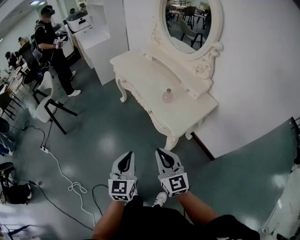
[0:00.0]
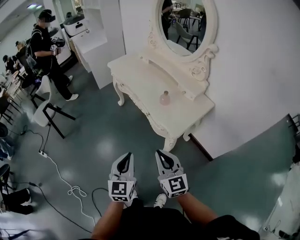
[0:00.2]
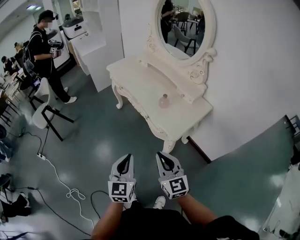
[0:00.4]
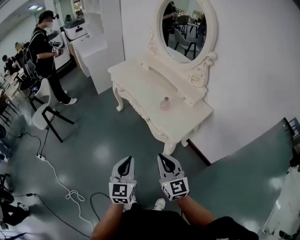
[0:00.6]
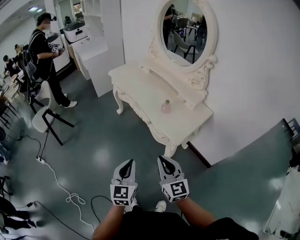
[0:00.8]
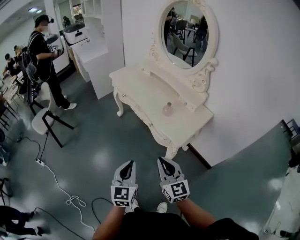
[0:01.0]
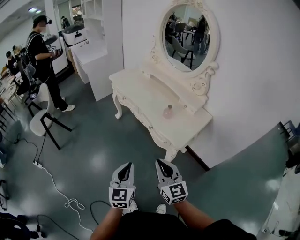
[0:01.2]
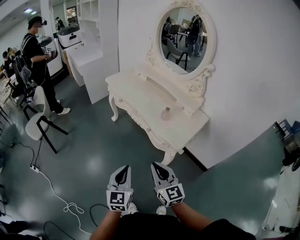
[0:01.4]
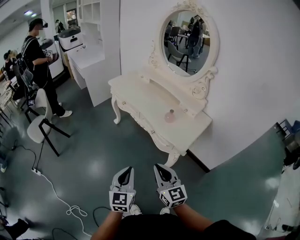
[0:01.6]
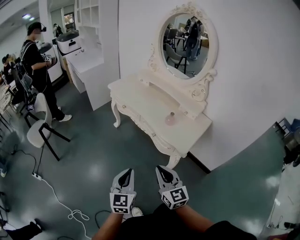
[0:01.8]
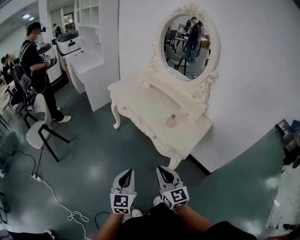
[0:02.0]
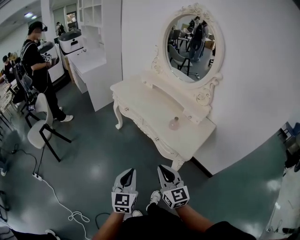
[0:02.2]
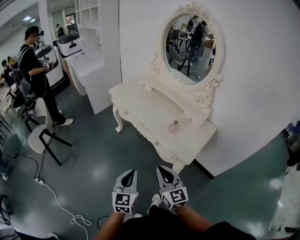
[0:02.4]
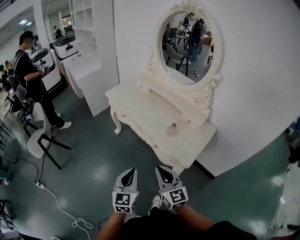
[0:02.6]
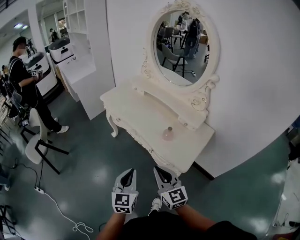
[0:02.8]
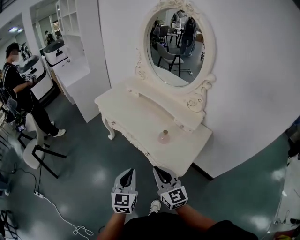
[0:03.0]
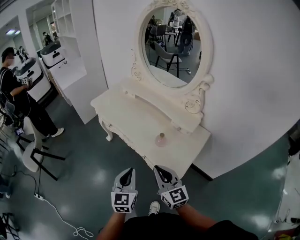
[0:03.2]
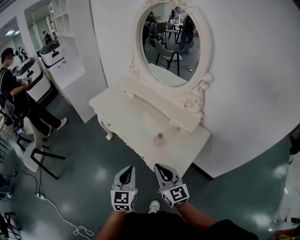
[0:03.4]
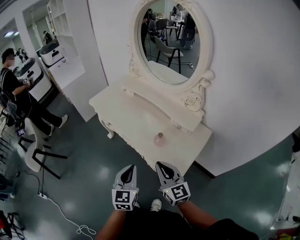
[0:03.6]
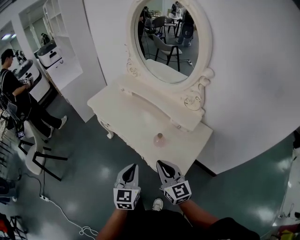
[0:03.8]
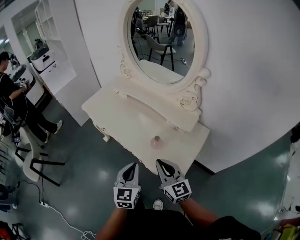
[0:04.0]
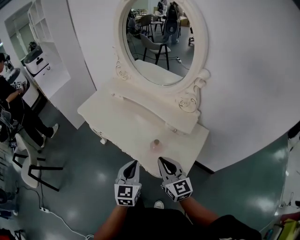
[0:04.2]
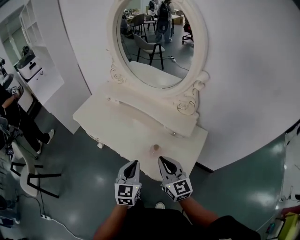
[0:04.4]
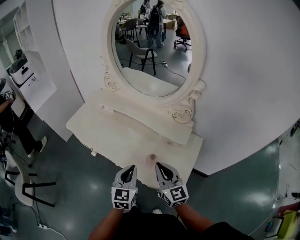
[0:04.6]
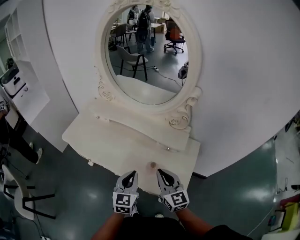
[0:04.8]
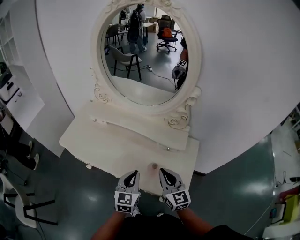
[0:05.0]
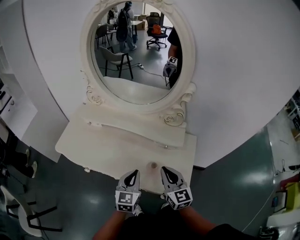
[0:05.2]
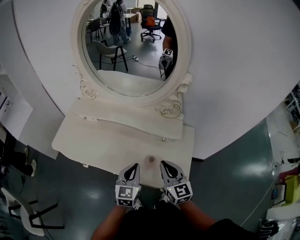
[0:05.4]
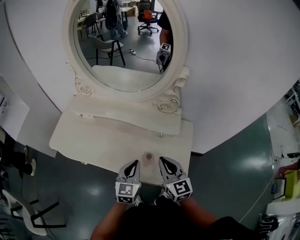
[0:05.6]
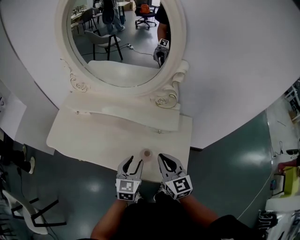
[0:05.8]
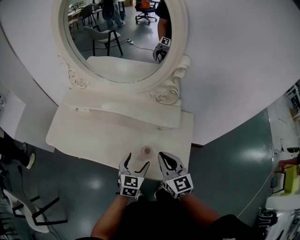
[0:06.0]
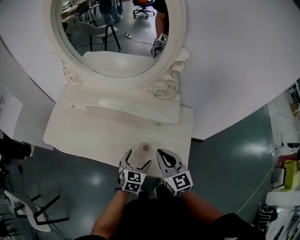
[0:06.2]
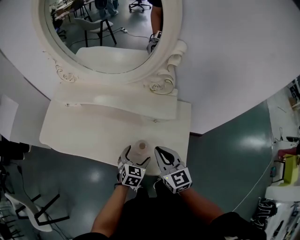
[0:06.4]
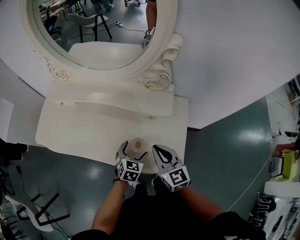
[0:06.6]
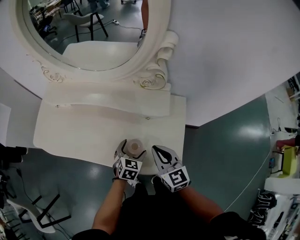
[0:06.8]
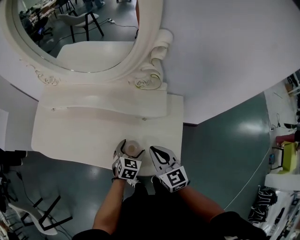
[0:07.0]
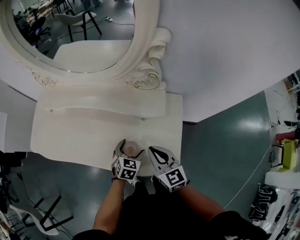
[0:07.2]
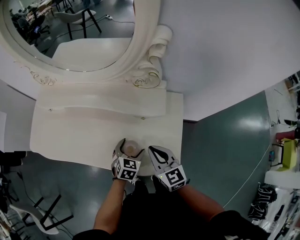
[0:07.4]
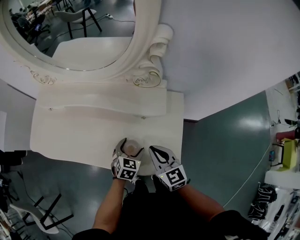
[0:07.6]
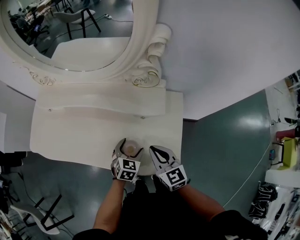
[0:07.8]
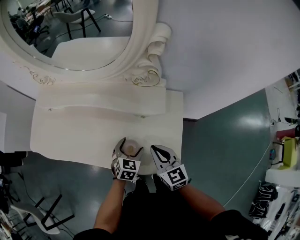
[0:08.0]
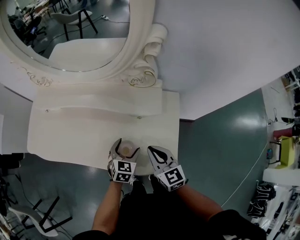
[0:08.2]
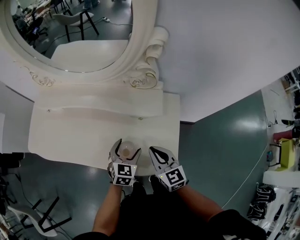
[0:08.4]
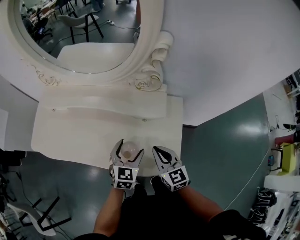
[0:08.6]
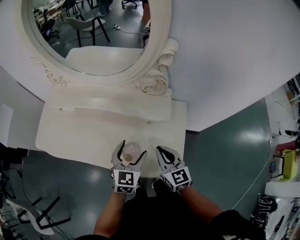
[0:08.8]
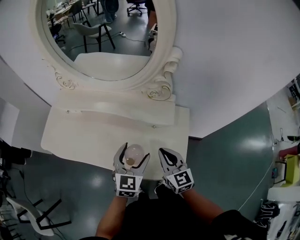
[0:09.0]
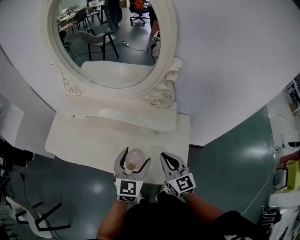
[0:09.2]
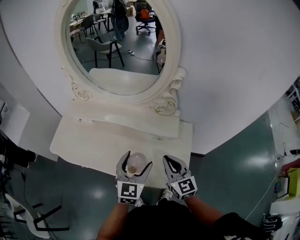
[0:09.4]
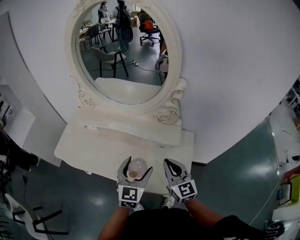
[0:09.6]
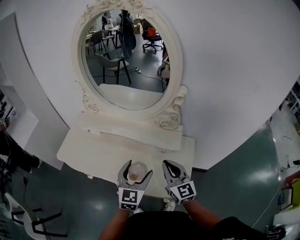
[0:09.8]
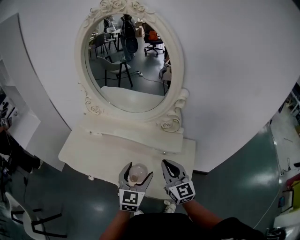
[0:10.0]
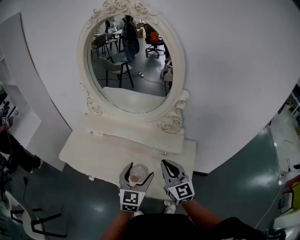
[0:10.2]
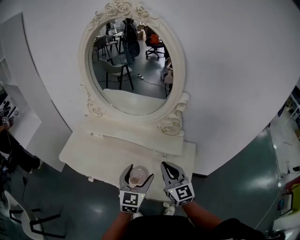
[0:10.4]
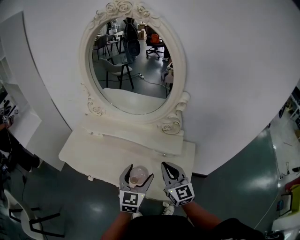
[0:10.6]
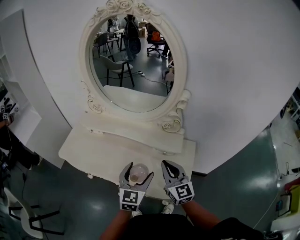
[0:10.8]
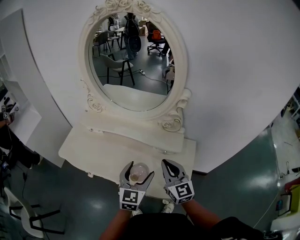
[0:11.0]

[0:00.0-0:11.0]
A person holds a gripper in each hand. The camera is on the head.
0:00.0 to 0:01.6: The two grippers go about 10 cm to the left.
0:01.6 to 0:03.2: The two grippers go roughly 20 cm forward and to the right.
0:03.2 to 0:04.8: Both grippers move forward, approximately 20 cm. The left gripper swivels approximately 20 degrees; the right gripper swivels roughly 20 degrees.
0:04.8 to 0:06.2: The left gripper heads downward and to the right, covering about 15 cm, changes its angle by some 30 degrees, and opens its fingers; the right gripper moves approximately 5 cm.
0:06.2 to 0:07.8: The right gripper moves downward, some 5 cm, while the left gripper moves downward and forward, some 10 cm.
0:07.8 to 0:09.4: The left gripper is displaced upward by some 20 cm, and changes its angle by roughly 30 degrees. The right gripper shifts approximately 10 cm upward.
0:09.4 to 0:11.0: The right gripper goes approximately 5 cm upward.

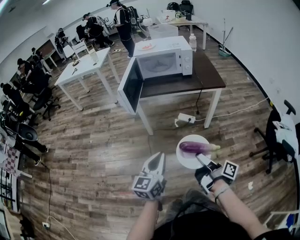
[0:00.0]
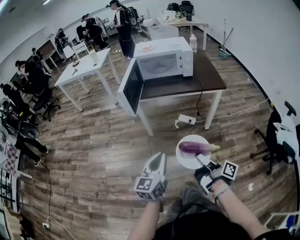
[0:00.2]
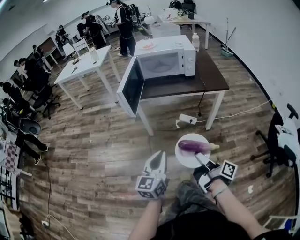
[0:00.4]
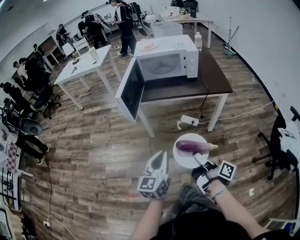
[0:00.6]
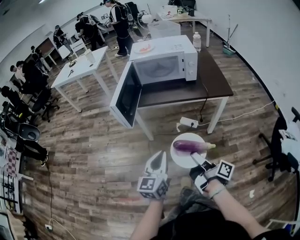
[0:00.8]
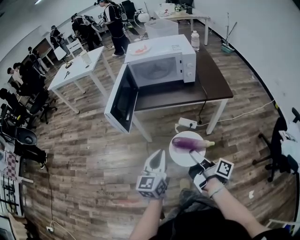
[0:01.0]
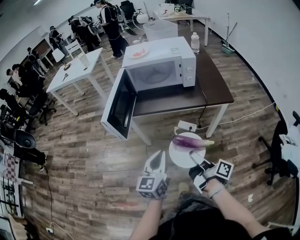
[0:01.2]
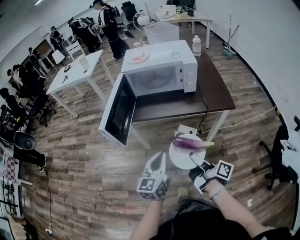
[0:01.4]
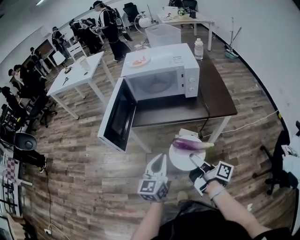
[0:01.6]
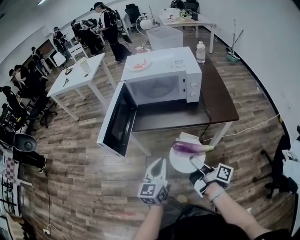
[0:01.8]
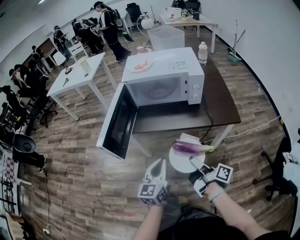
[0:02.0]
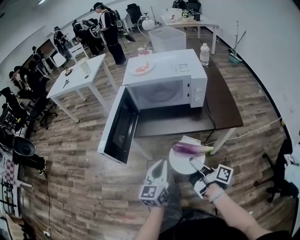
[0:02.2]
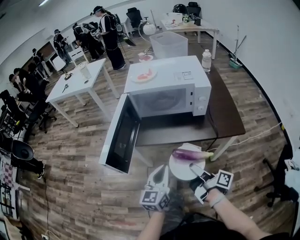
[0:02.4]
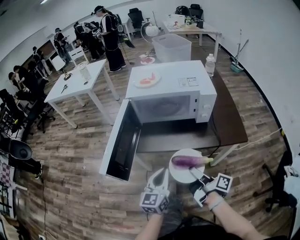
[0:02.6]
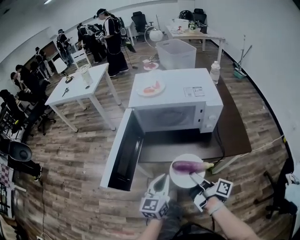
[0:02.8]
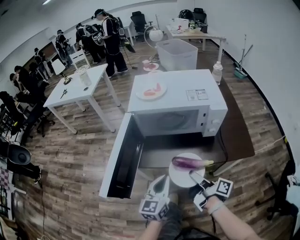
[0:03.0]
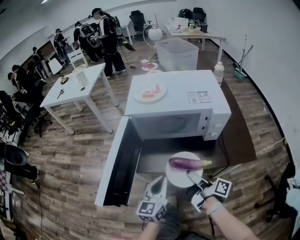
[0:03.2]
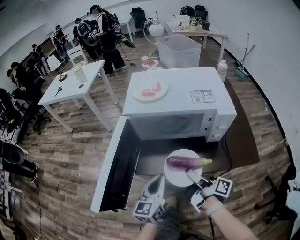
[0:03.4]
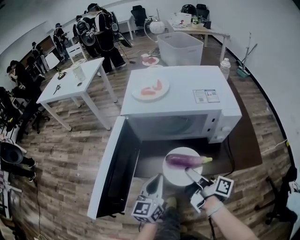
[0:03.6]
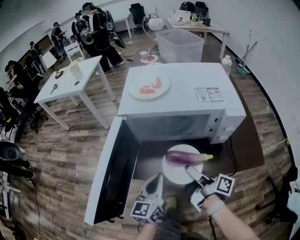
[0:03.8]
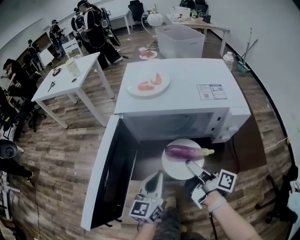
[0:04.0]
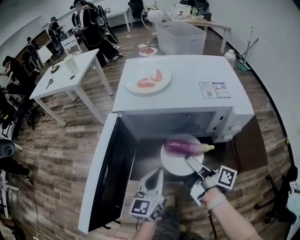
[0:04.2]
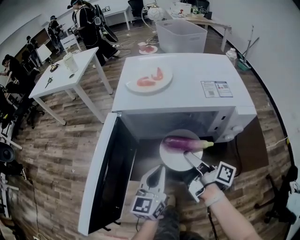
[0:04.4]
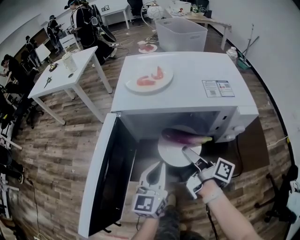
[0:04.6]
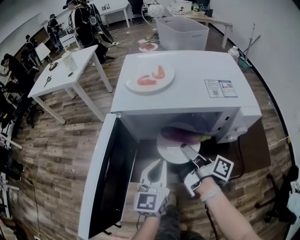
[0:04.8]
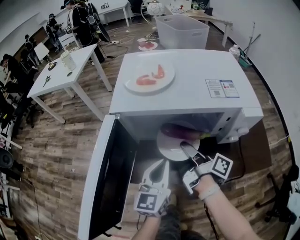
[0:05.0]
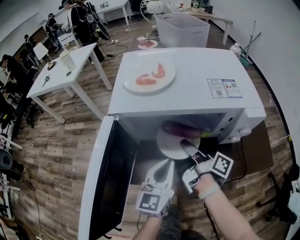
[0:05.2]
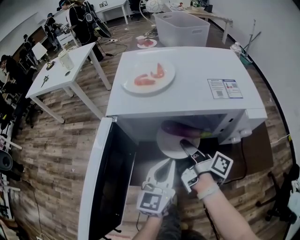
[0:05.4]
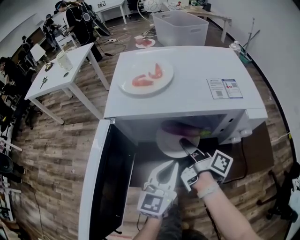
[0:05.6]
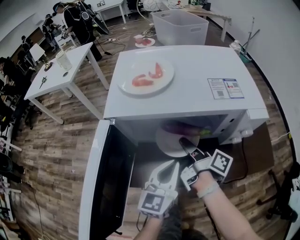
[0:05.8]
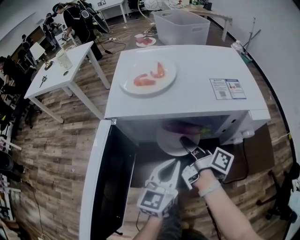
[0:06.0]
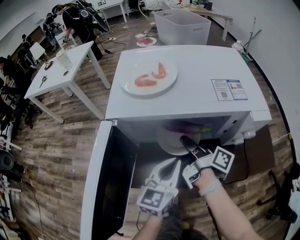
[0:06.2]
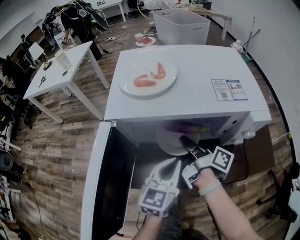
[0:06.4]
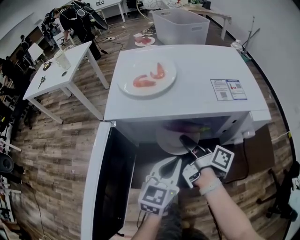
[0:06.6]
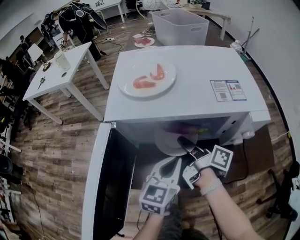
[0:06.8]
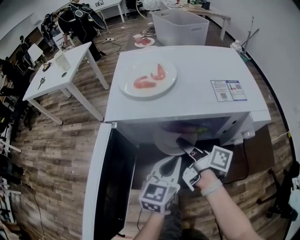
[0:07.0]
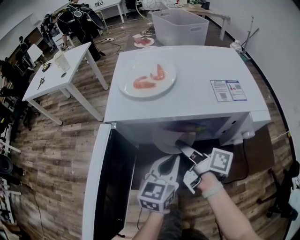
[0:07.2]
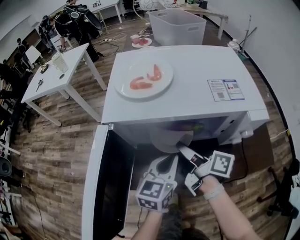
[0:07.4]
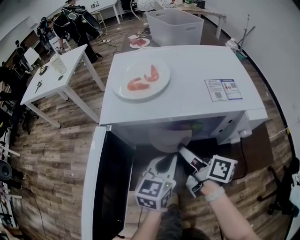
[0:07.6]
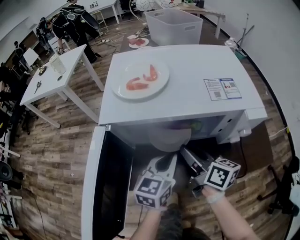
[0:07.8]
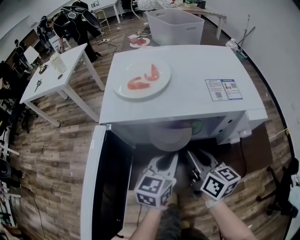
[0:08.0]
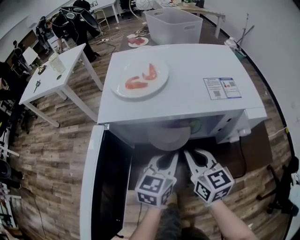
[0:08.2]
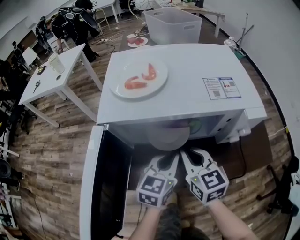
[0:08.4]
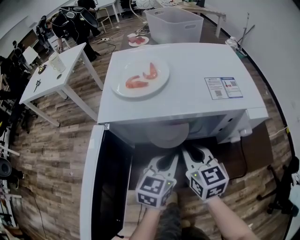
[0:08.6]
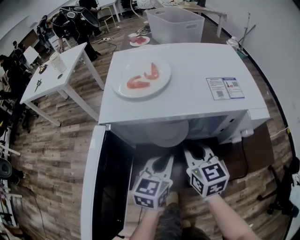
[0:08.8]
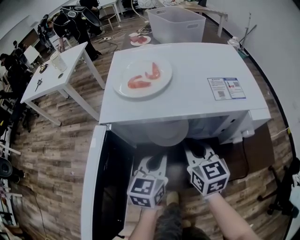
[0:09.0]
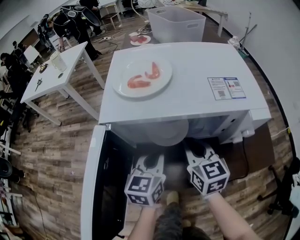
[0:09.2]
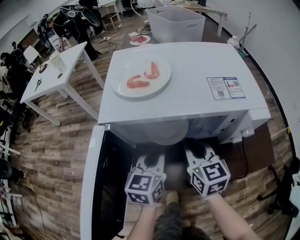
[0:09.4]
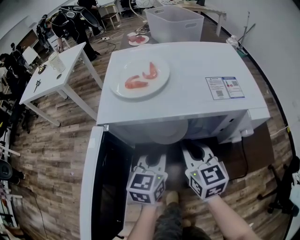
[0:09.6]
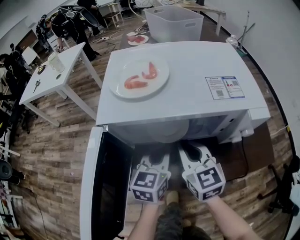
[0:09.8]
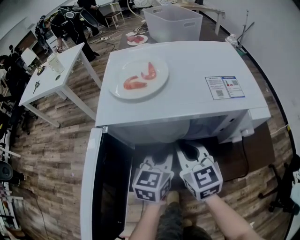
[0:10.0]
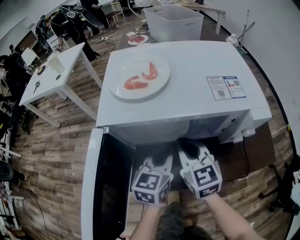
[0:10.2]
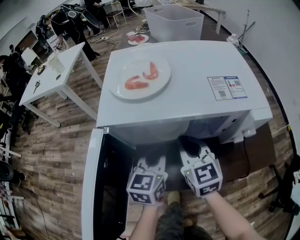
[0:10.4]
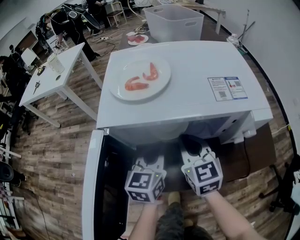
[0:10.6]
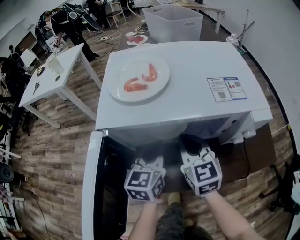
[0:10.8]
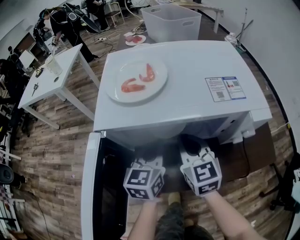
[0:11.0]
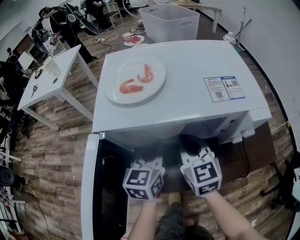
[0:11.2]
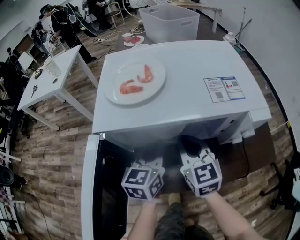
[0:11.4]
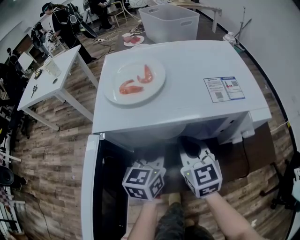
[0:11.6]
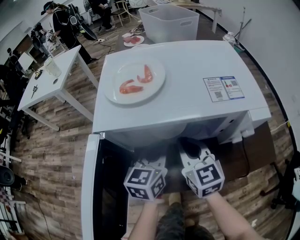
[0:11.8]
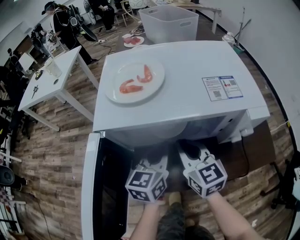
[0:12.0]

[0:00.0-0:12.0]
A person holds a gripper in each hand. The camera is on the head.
0:00.0 to 0:01.6: The grippers both shift forward by approximately 25 cm.
0:01.6 to 0:03.0: The two grippers go approximately 20 cm forward.
0:03.0 to 0:04.4: Both grippers move forward, some 15 cm.
0:04.4 to 0:06.0: The right gripper shifts about 10 cm forward. Meanwhile the left gripper goes some 5 cm to the right.
0:06.0 to 0:07.6: The right gripper changes its angle by roughly 30 degrees.
0:07.6 to 0:09.0: The right gripper rolls counterclockwise, seen from behind, by some 50 degrees, and closes its fingers.
0:09.0 to 0:12.0: The grippers move only a little.

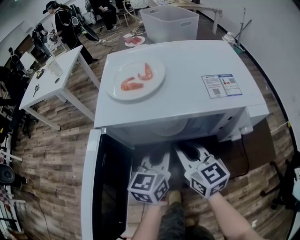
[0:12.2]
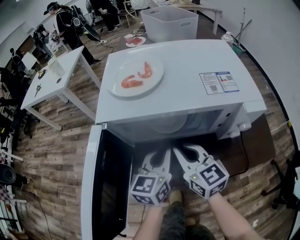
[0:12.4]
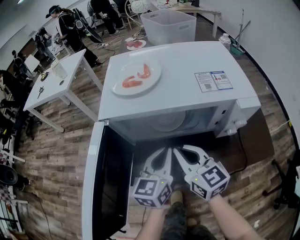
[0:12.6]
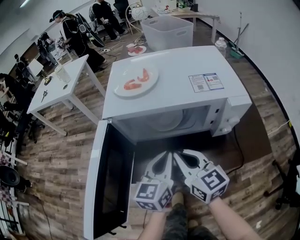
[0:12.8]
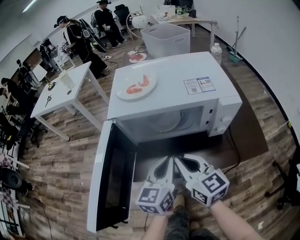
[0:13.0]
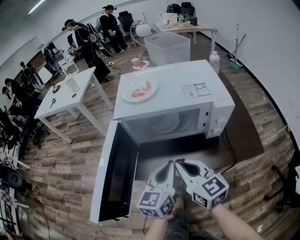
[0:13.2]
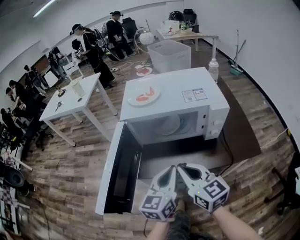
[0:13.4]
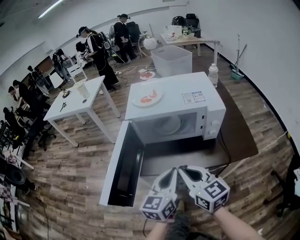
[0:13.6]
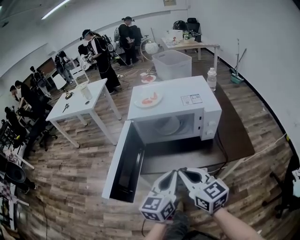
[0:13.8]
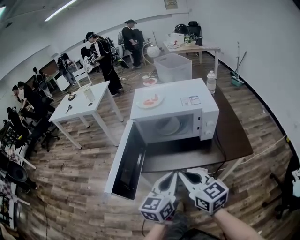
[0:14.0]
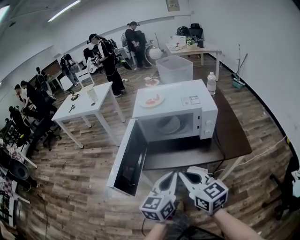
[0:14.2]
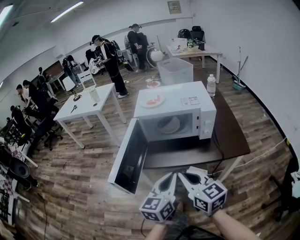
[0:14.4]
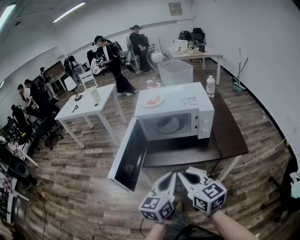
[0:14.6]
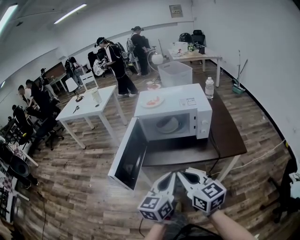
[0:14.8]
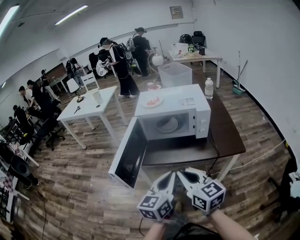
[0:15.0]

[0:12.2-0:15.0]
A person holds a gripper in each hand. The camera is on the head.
0:12.2 to 0:13.6: The two grippers go approximately 20 cm backward and upward.
0:13.6 to 0:15.0: The two grippers go approximately 15 cm backward and upward.
